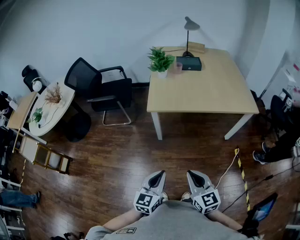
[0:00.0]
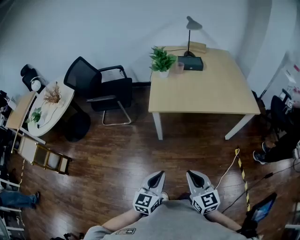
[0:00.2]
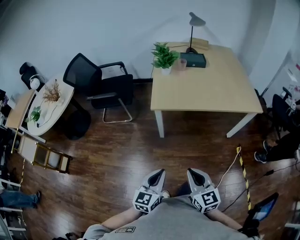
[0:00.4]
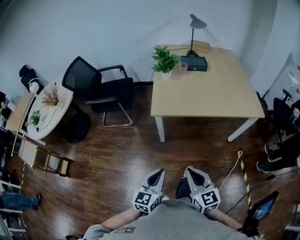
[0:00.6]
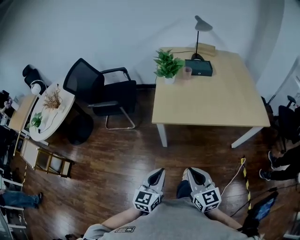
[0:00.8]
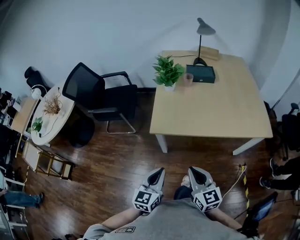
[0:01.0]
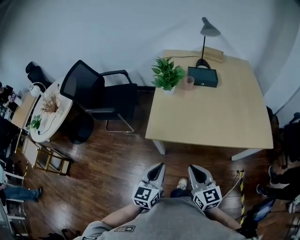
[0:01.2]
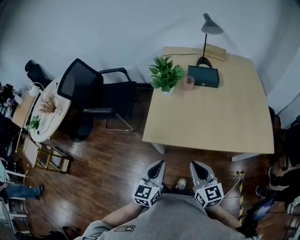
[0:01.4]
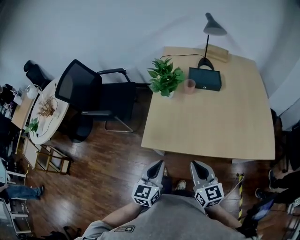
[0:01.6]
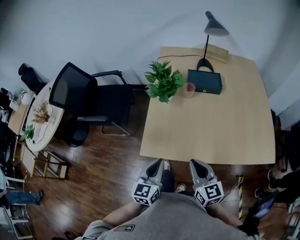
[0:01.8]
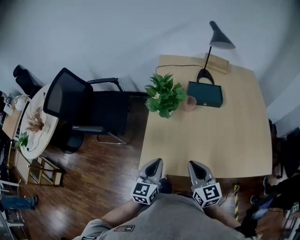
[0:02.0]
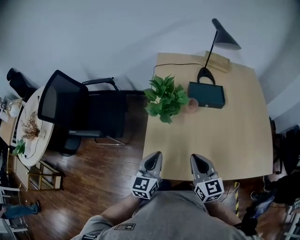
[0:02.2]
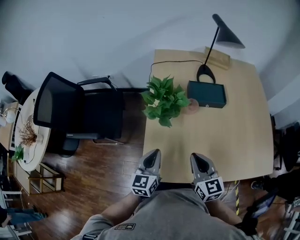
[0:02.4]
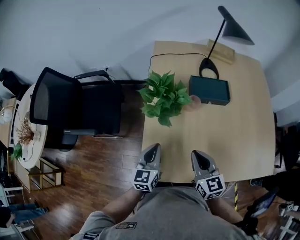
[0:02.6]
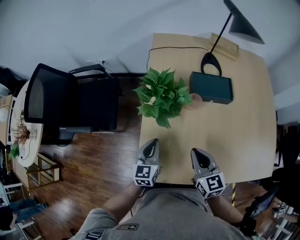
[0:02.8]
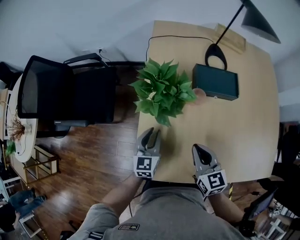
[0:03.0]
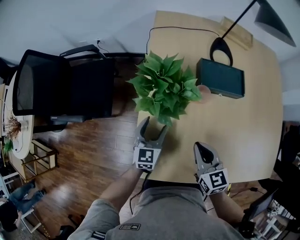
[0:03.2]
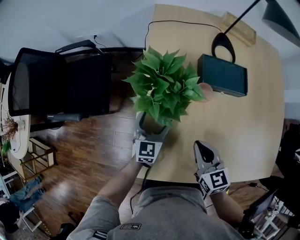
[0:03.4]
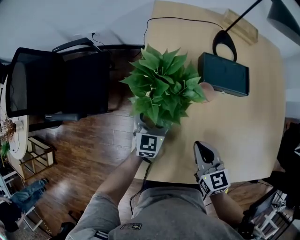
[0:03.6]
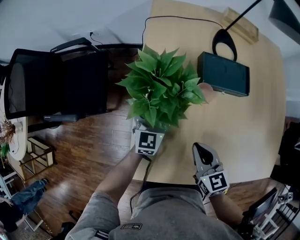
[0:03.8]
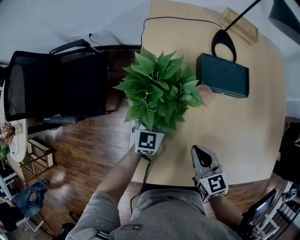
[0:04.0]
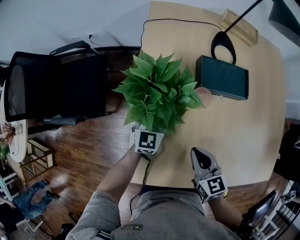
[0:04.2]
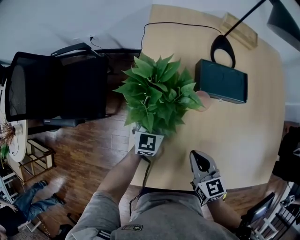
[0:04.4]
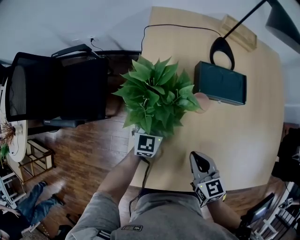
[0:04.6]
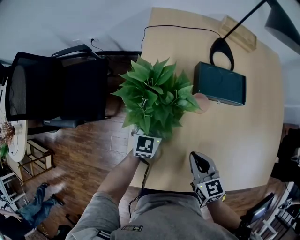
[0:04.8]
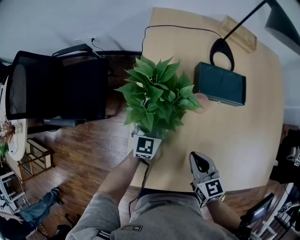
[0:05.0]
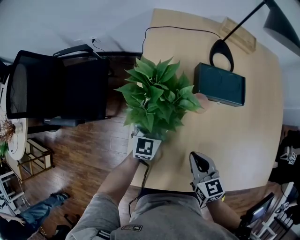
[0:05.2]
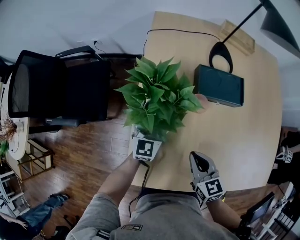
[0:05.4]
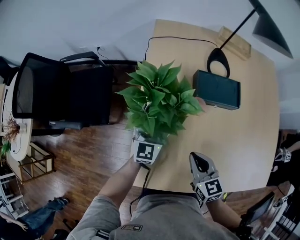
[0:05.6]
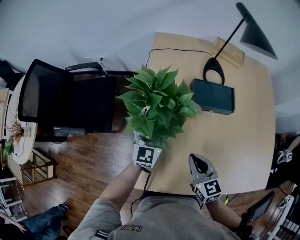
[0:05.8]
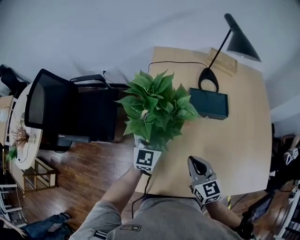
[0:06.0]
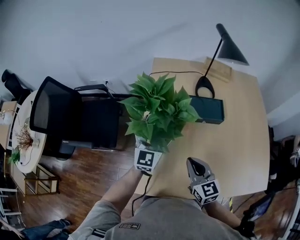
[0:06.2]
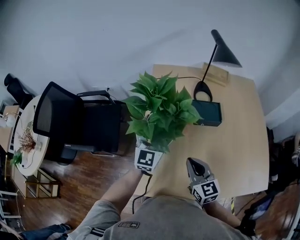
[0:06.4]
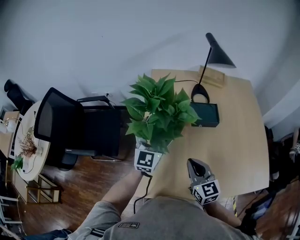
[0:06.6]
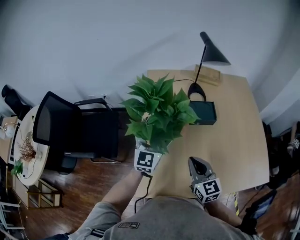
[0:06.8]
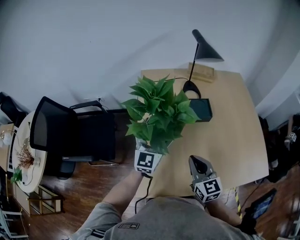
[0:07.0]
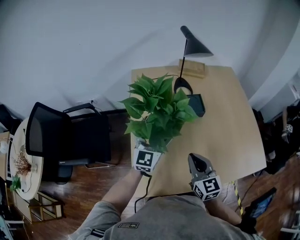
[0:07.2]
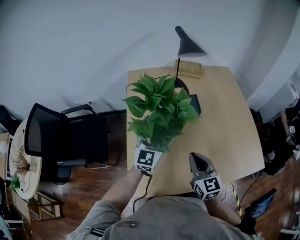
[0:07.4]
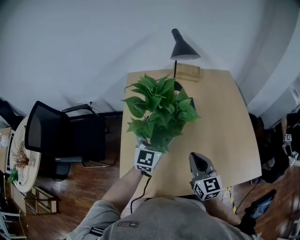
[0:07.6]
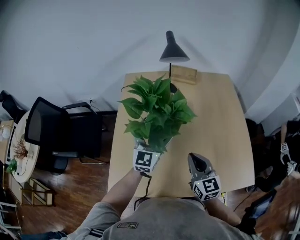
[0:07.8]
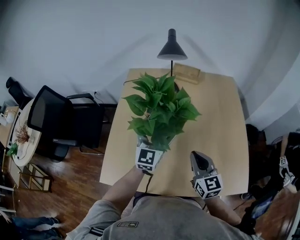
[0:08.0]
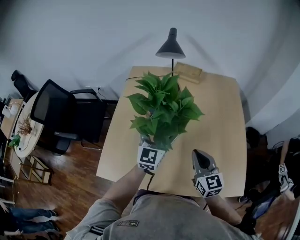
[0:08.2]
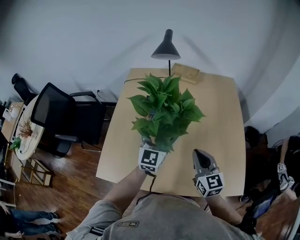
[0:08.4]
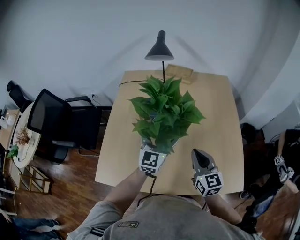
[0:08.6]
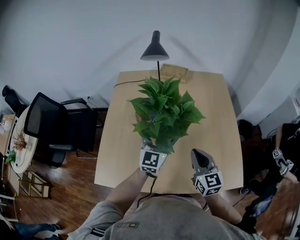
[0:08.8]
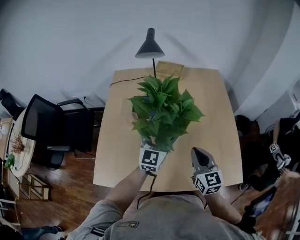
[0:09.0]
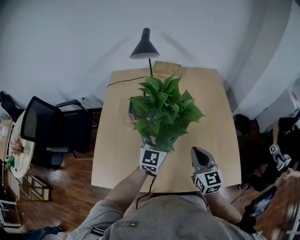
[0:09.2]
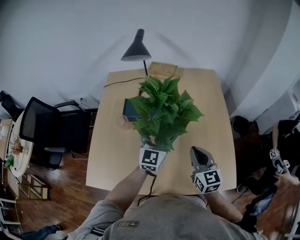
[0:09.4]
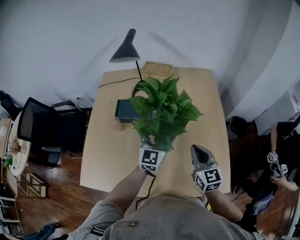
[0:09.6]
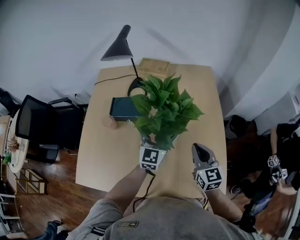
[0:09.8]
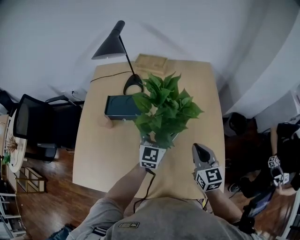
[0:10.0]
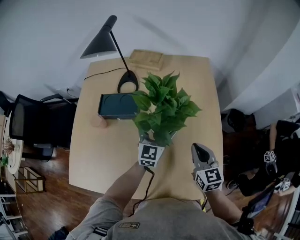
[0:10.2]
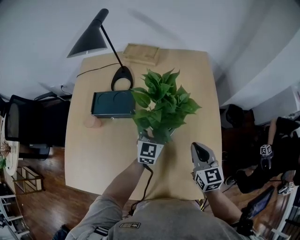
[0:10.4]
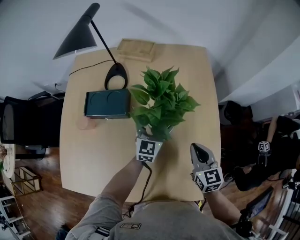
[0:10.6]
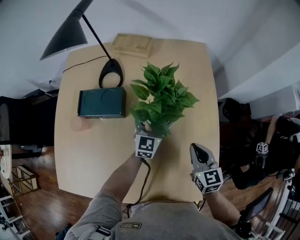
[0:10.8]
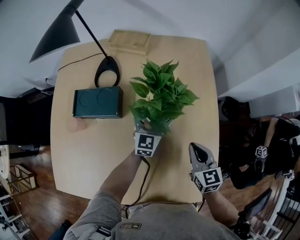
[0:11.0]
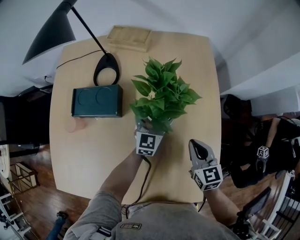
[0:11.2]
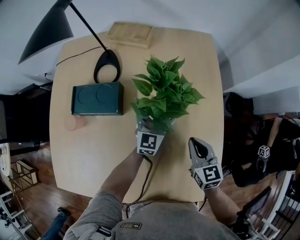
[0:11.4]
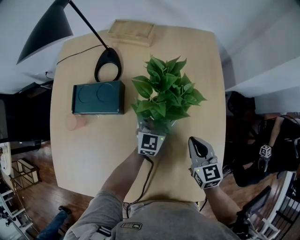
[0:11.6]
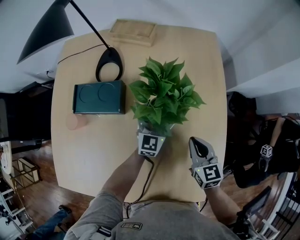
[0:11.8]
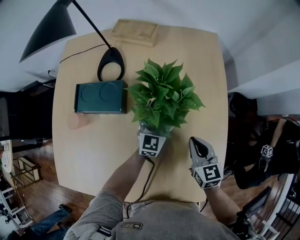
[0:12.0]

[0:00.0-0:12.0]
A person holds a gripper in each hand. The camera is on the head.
0.0 to 1.6 s: The grippers both shift forward by approximately 35 cm.
1.6 to 3.0 s: The two grippers go approximately 30 cm forward.
3.0 to 4.4 s: The right gripper is displaced downward by approximately 5 cm. The left gripper is displaced forward and to the right by approximately 15 cm, and opens its fingers.
4.4 to 6.0 s: The left gripper moves upward, about 15 cm. The right gripper shifts approximately 5 cm upward.
6.0 to 7.6 s: Both grippers move to the right and upward, about 15 cm.
7.6 to 9.0 s: Both grippers move to the right, roughly 20 cm.
9.0 to 10.4 s: The right gripper is displaced to the right, forward and downward by about 25 cm. Meanwhile the left gripper is displaced to the right, downward and forward by some 25 cm.
10.4 to 12.0 s: Both grippers travel together downward, roughly 5 cm.

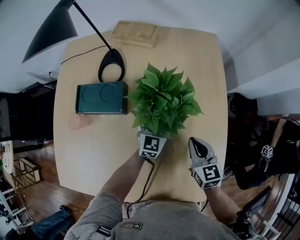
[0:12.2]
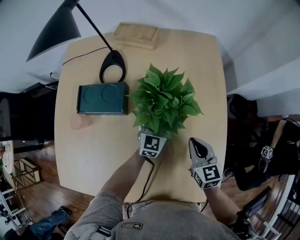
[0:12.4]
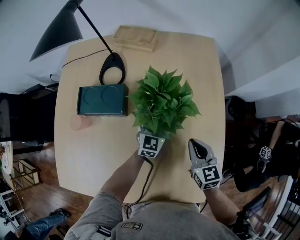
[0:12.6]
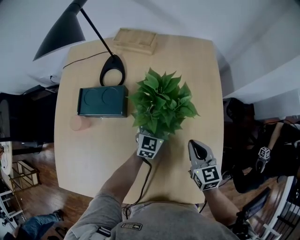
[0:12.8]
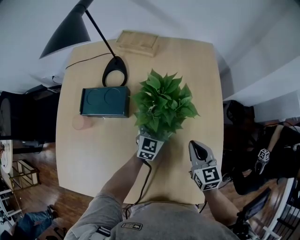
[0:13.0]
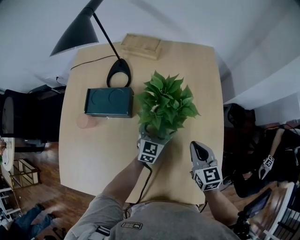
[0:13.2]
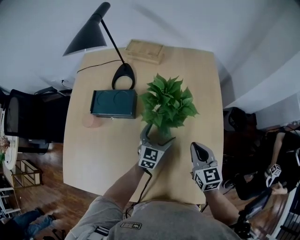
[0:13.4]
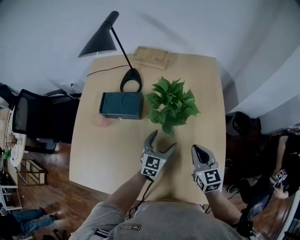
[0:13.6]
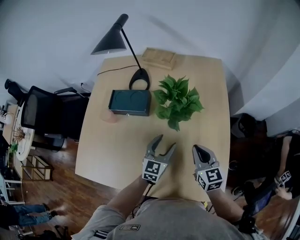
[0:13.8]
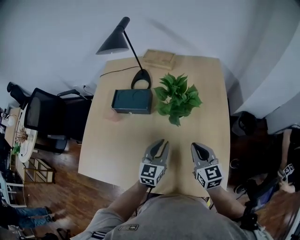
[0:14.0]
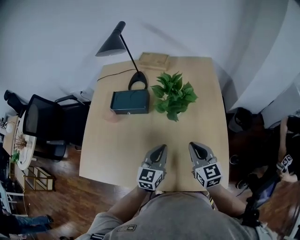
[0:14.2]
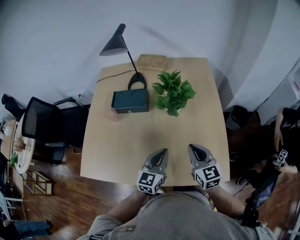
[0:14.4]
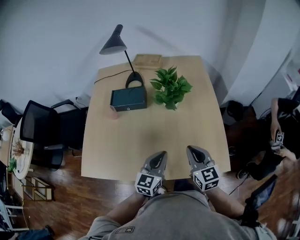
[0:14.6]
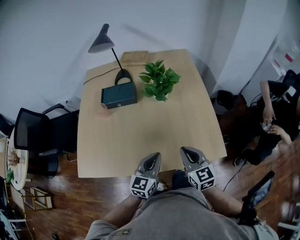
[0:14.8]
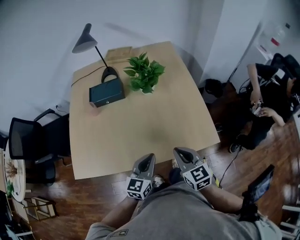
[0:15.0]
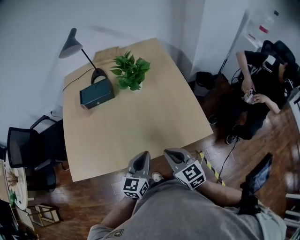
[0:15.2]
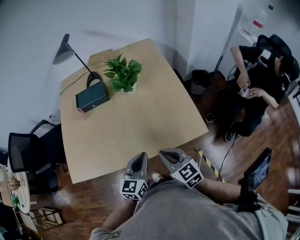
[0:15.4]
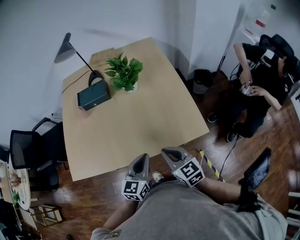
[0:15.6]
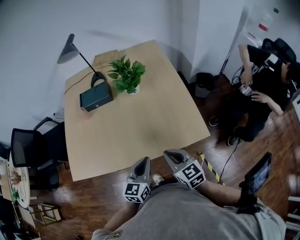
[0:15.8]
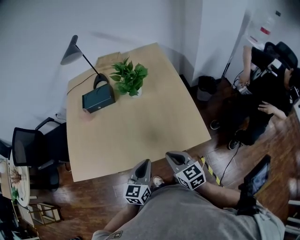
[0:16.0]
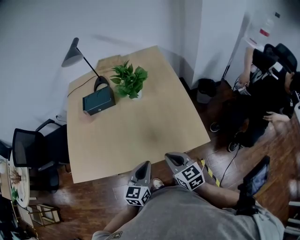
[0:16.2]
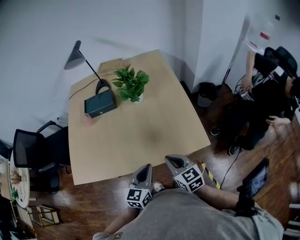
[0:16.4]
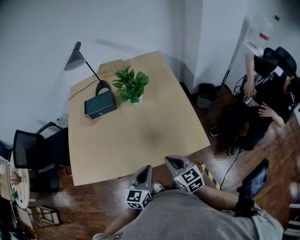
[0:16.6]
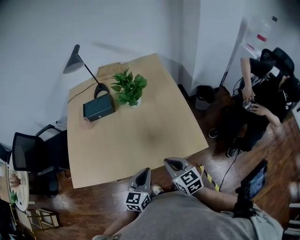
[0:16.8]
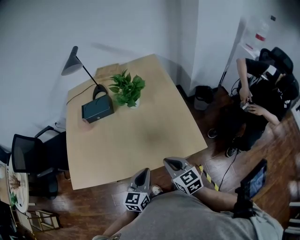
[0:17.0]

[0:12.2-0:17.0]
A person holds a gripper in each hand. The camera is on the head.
12.2 to 13.8 s: The left gripper travels backward and upward by approximately 15 cm, and closes up; the right gripper heads backward and upward, covering approximately 10 cm.
13.8 to 15.4 s: The grippers both shift backward by roughly 30 cm. The left gripper closes.
15.4 to 17.0 s: The grippers make only small movements.

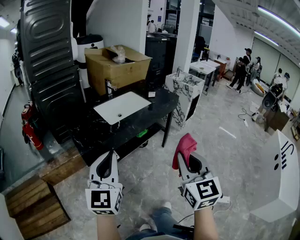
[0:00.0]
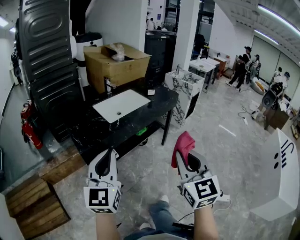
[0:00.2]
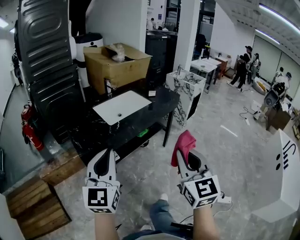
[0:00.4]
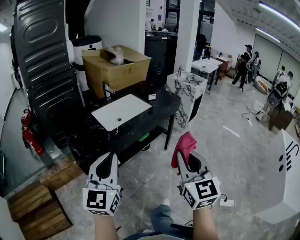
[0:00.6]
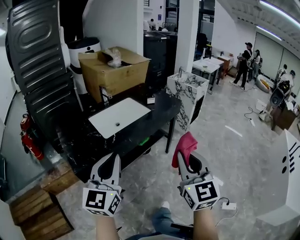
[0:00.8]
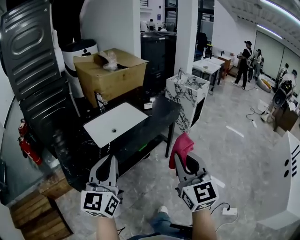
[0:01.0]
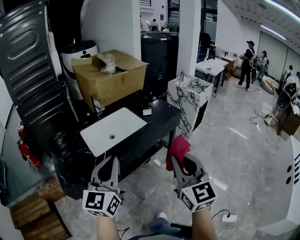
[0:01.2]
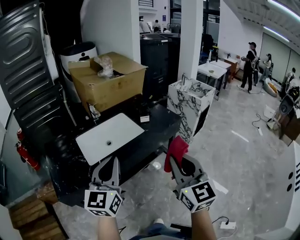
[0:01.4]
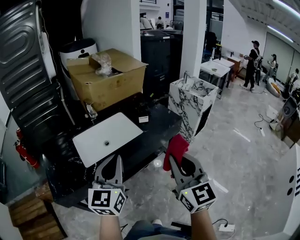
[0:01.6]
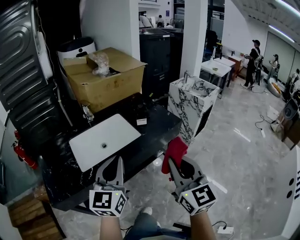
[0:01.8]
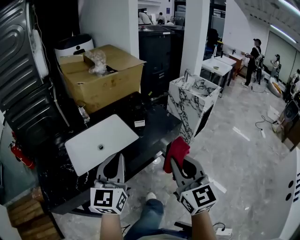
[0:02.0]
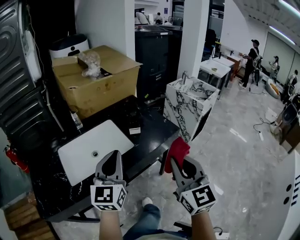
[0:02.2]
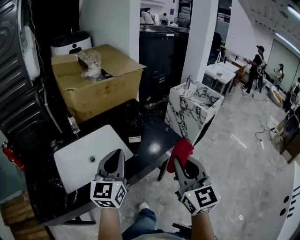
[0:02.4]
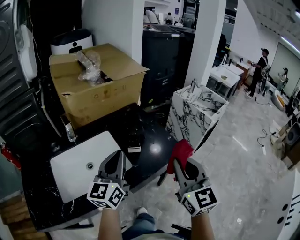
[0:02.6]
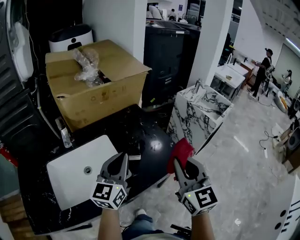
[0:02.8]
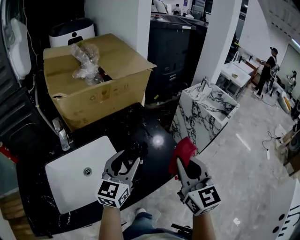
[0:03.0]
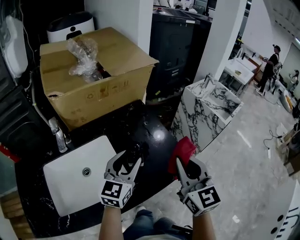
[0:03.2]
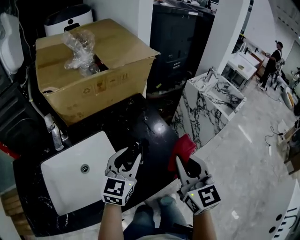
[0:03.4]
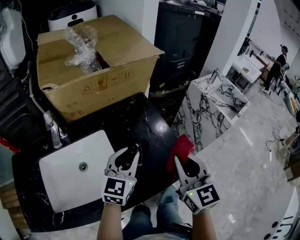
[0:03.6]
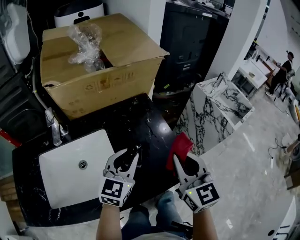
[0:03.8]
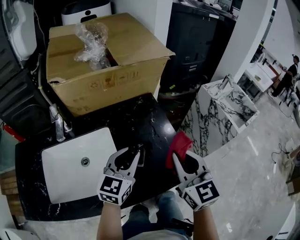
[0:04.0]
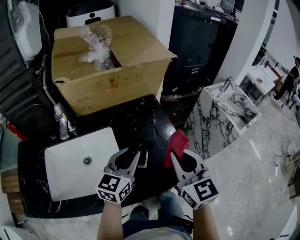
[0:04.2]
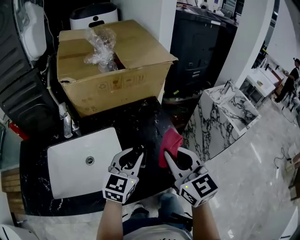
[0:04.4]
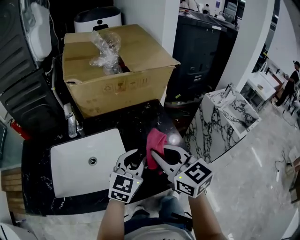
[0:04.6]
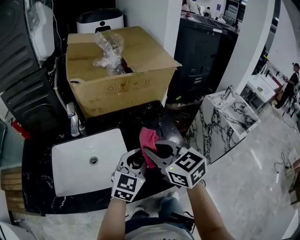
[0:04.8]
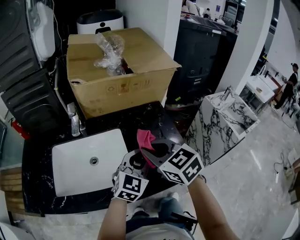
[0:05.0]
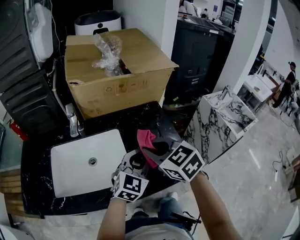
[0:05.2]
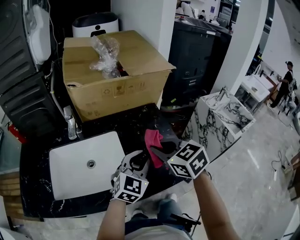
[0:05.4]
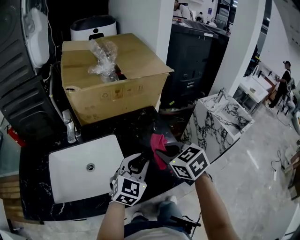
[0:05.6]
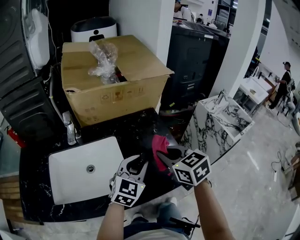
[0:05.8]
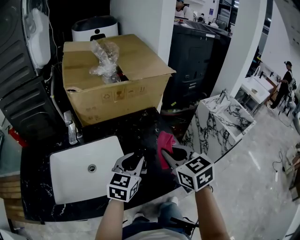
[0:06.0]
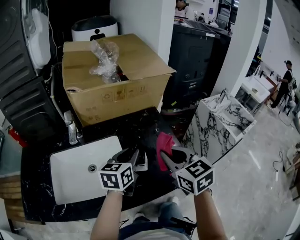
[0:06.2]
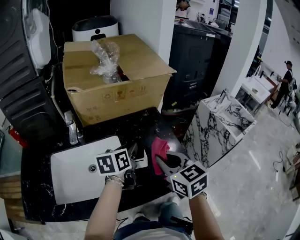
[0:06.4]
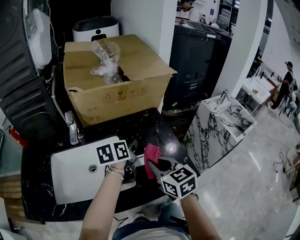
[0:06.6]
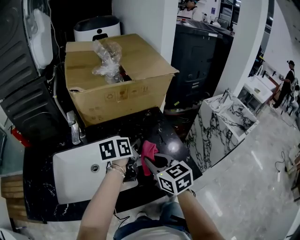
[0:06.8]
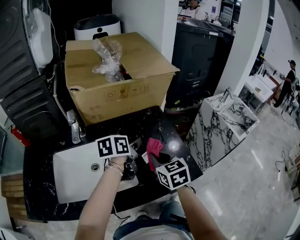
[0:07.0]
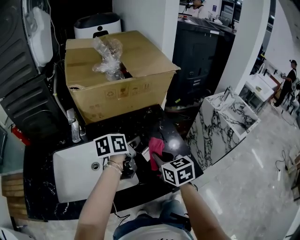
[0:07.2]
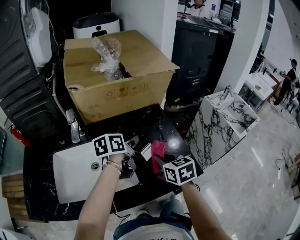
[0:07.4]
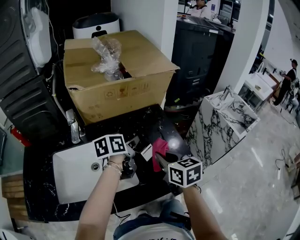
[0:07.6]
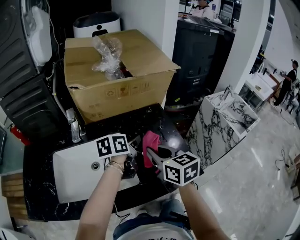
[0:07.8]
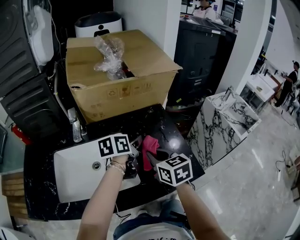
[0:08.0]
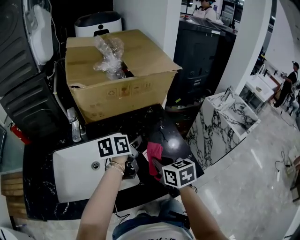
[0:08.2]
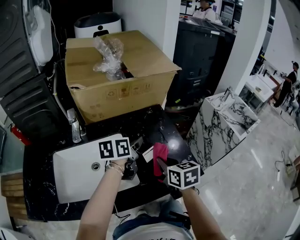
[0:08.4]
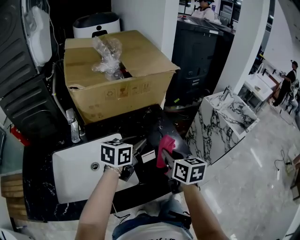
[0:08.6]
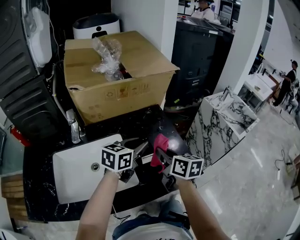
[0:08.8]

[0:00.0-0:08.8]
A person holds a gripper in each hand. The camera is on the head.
0.0 to 1.4 s: The left gripper shifts about 35 cm forward and to the right, while the right gripper is displaced forward by some 30 cm.
1.4 to 3.0 s: Both grippers are carried forward, roughly 40 cm. The left gripper opens.
3.0 to 4.4 s: The left gripper shifts by approximately 5 cm, and closes, while the right gripper travels forward by approximately 5 cm, and changes its angle by about 20 degrees.
4.4 to 5.8 s: The right gripper reaches about 10 cm to the left, then returns, and turns by approximately 20 degrees.
5.8 to 7.4 s: The left gripper travels forward and to the left by some 10 cm, and rotates around the line of its fingers by some 60 degrees, counterclockwise from behind. The right gripper travels downward by approximately 10 cm.
7.4 to 8.8 s: The left gripper moves about 5 cm, and changes its angle by about 30 degrees; the right gripper changes its angle by about 30 degrees.
